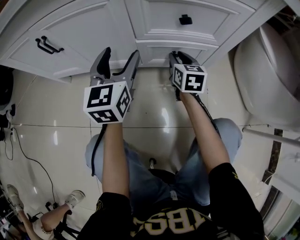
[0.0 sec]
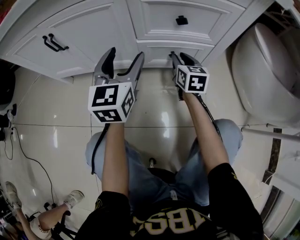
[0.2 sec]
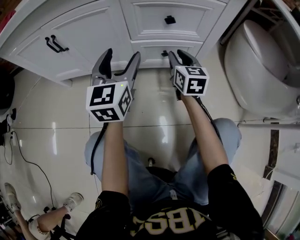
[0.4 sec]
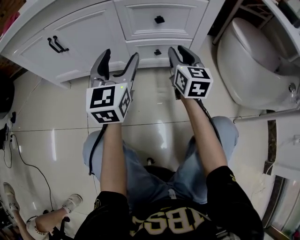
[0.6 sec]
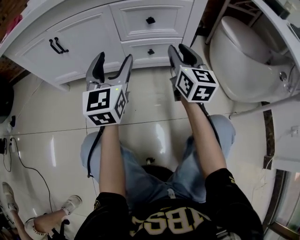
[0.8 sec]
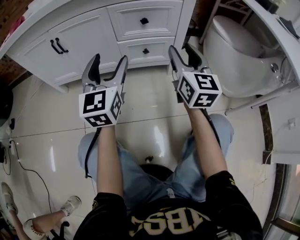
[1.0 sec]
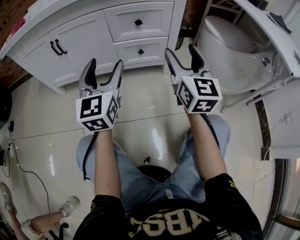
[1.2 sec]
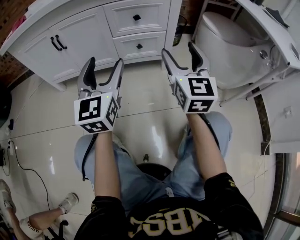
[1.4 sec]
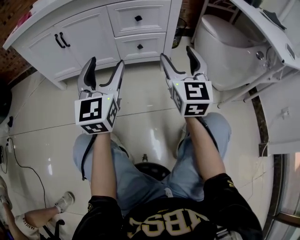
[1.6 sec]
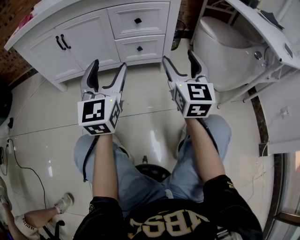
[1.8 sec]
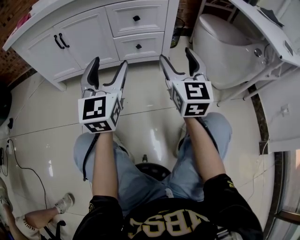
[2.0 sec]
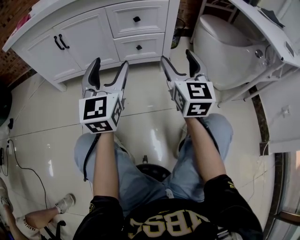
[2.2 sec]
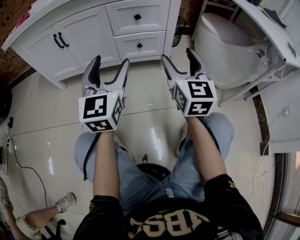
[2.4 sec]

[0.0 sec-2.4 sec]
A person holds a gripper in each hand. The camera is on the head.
0.0 sec to 1.2 sec: The left gripper moves backward and upward, some 25 cm; the right gripper travels upward and backward by about 40 cm, tilts its fingers approximately 30 degrees upward, and opens up.
1.2 sec to 2.4 sec: The grippers both shift backward by approximately 5 cm.

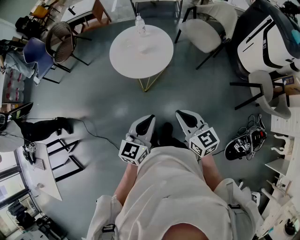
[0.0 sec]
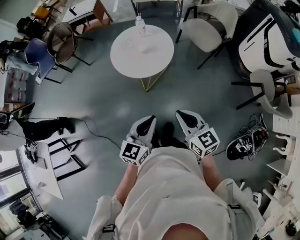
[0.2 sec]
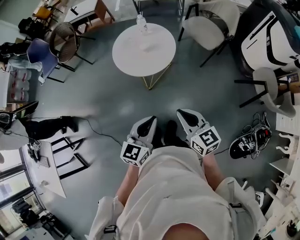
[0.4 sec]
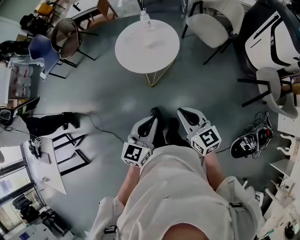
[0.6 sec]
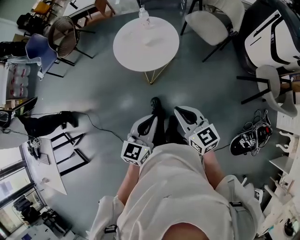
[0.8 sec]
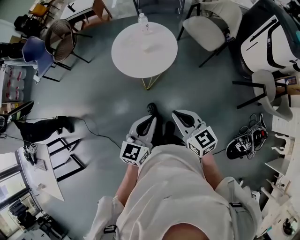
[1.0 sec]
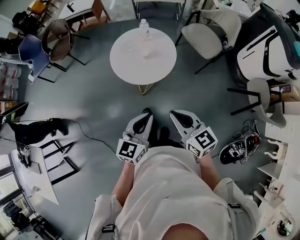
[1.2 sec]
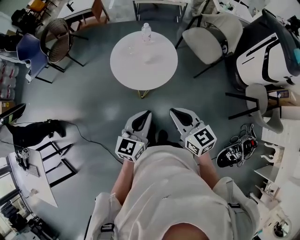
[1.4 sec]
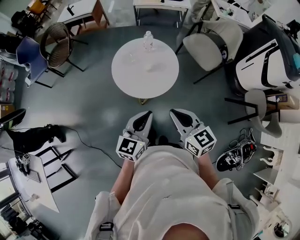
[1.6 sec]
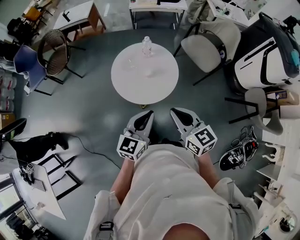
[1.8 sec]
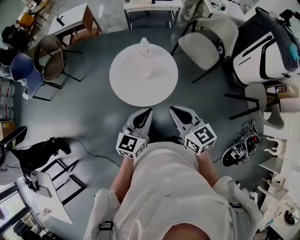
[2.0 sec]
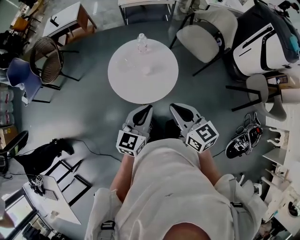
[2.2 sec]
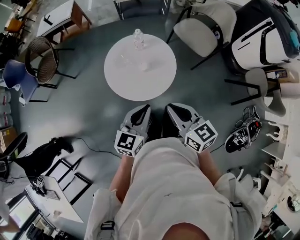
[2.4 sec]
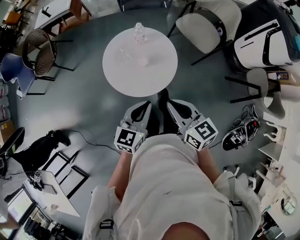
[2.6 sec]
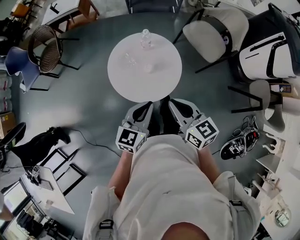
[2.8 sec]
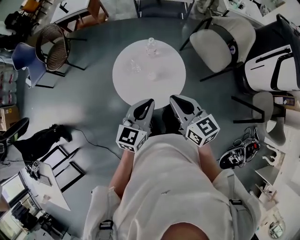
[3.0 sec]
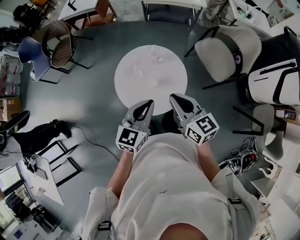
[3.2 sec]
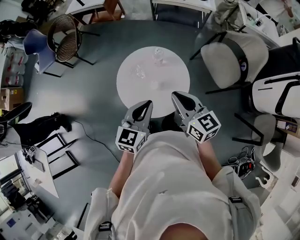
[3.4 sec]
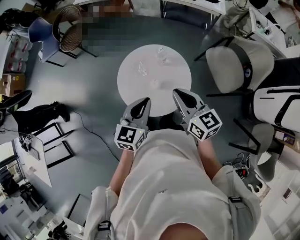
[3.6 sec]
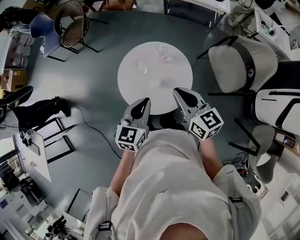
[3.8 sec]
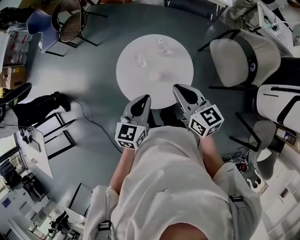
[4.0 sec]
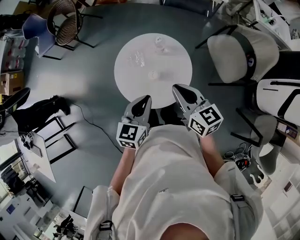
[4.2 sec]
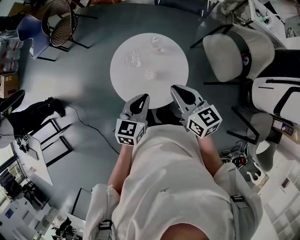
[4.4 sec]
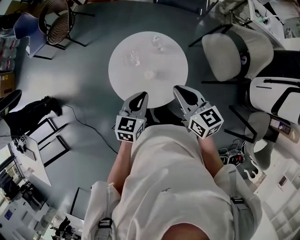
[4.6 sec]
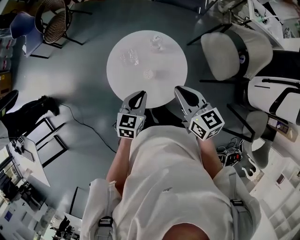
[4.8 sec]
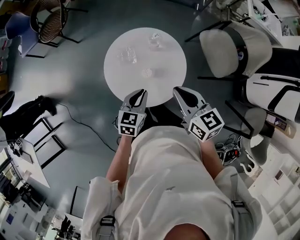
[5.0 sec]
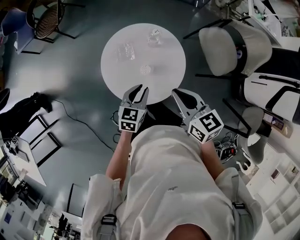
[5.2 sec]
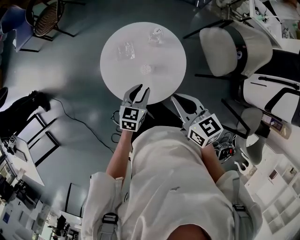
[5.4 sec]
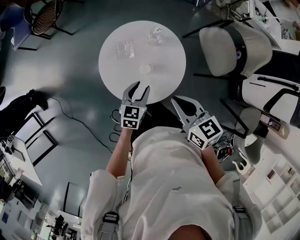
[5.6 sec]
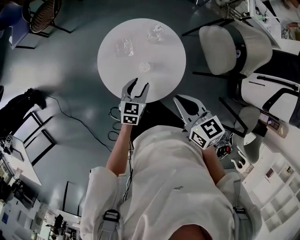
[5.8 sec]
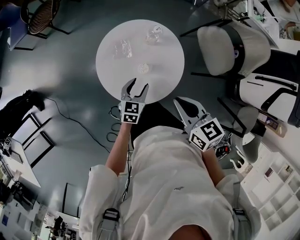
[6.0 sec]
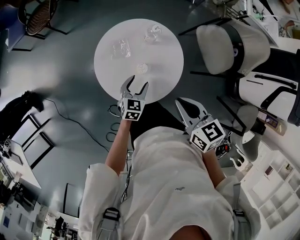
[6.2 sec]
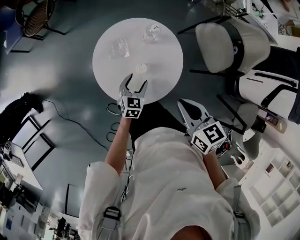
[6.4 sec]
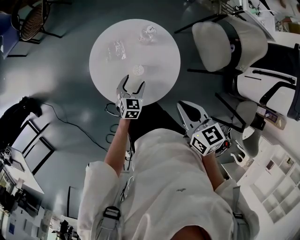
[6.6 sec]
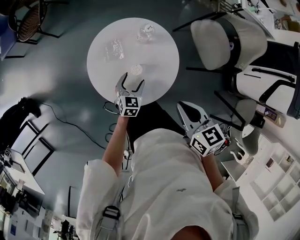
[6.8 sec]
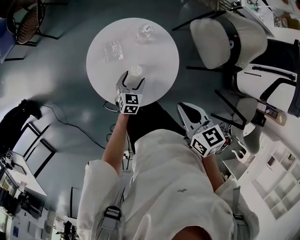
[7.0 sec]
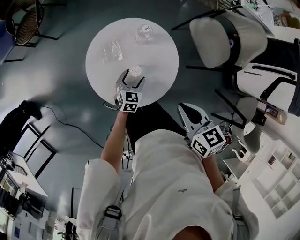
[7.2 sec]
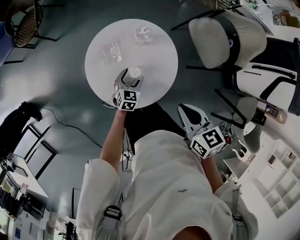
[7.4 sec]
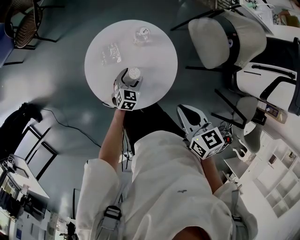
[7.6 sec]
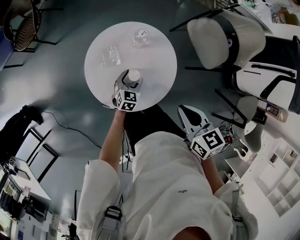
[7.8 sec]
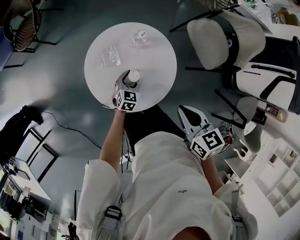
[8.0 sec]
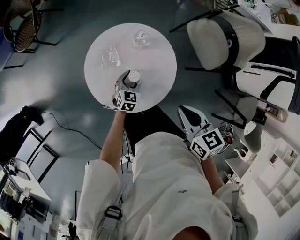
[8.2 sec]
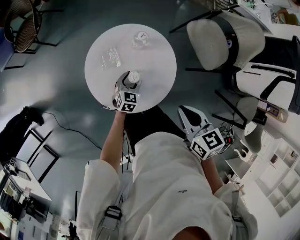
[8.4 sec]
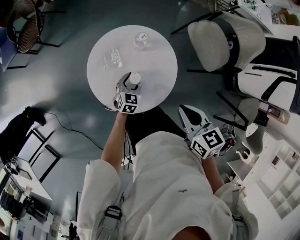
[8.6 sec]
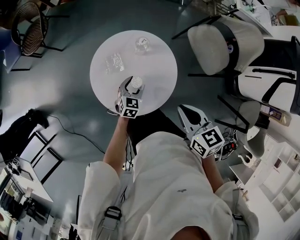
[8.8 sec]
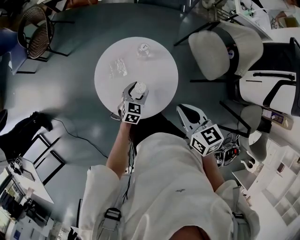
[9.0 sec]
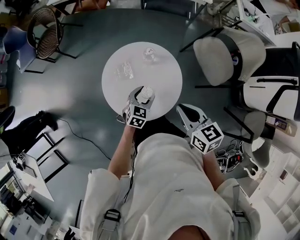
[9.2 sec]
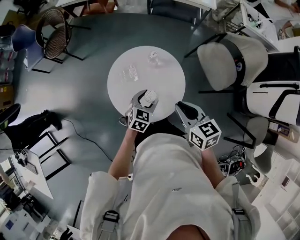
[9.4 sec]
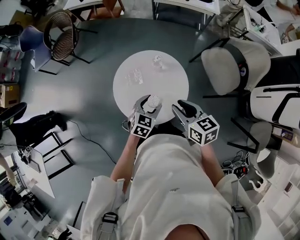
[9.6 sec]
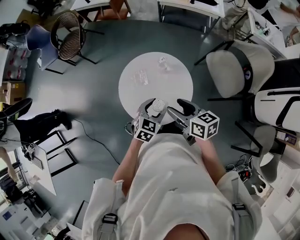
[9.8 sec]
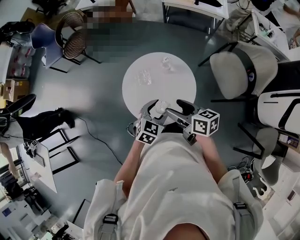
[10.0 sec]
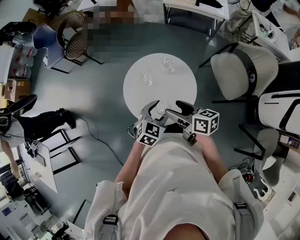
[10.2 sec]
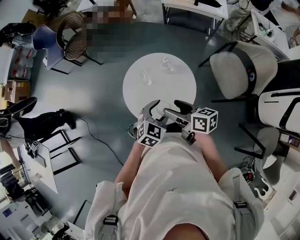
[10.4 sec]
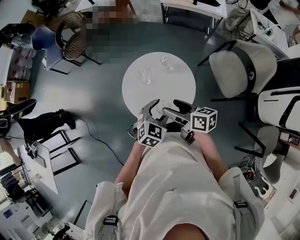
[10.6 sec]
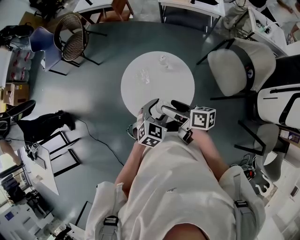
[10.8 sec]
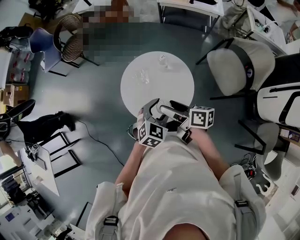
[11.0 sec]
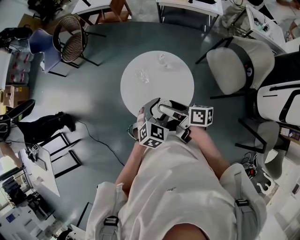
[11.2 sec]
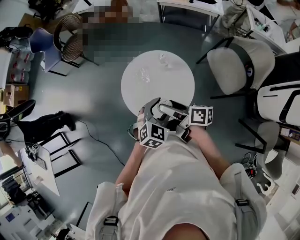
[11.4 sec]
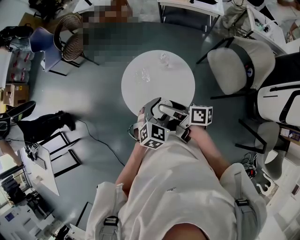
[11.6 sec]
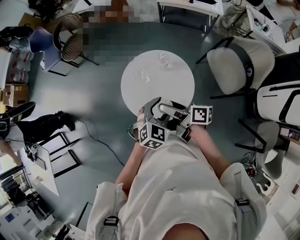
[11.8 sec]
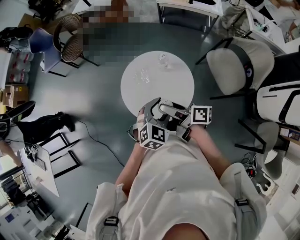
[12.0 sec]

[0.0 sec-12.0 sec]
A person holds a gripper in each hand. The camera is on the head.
0.0 sec to 1.6 sec: The left gripper is displaced forward by roughly 15 cm; the right gripper goes about 15 cm forward and to the left.
1.6 sec to 3.0 sec: The two grippers go some 20 cm forward.
3.0 sec to 4.4 sec: The right gripper shifts approximately 10 cm forward. Meanwhile the left gripper is displaced downward and forward by some 10 cm, and swivels some 20 degrees.
4.4 sec to 6.0 sec: The left gripper heads downward, covering roughly 20 cm, and opens its fingers. The right gripper travels downward by about 5 cm.
6.0 sec to 7.6 sec: The left gripper shifts some 10 cm downward and forward, and opens.
7.6 sec to 9.0 sec: The left gripper shifts some 10 cm upward.
9.0 sec to 10.4 sec: The left gripper shifts about 20 cm upward and backward, while the right gripper shifts about 10 cm to the left, swivels approximately 40 degrees, and opens its fingers.
10.4 sec to 12.0 sec: The right gripper rotates some 20 degrees.

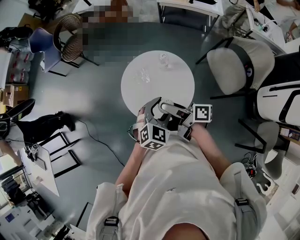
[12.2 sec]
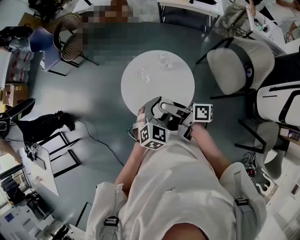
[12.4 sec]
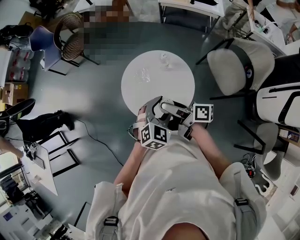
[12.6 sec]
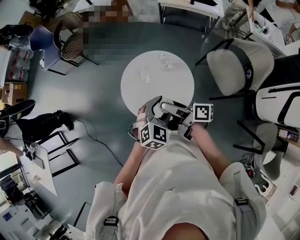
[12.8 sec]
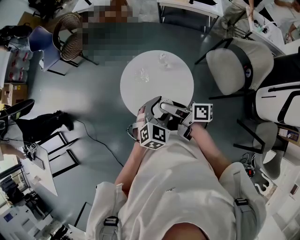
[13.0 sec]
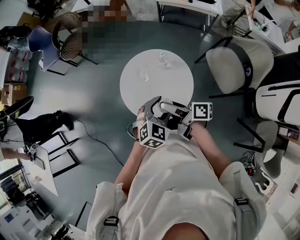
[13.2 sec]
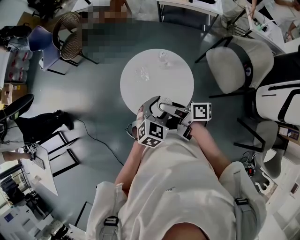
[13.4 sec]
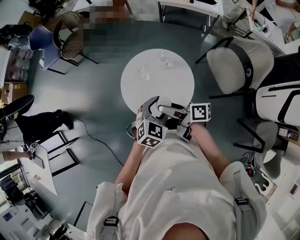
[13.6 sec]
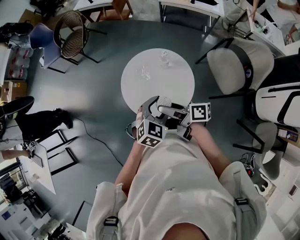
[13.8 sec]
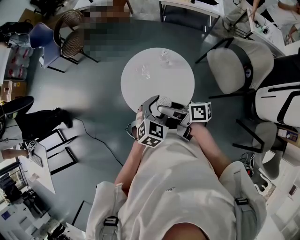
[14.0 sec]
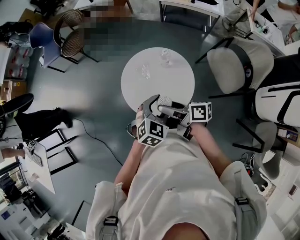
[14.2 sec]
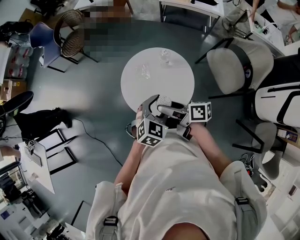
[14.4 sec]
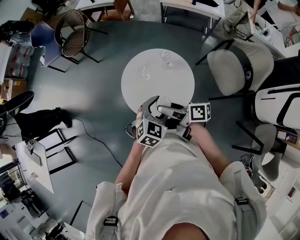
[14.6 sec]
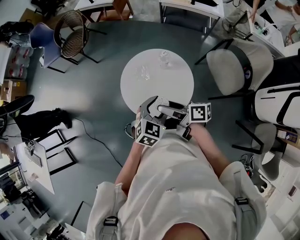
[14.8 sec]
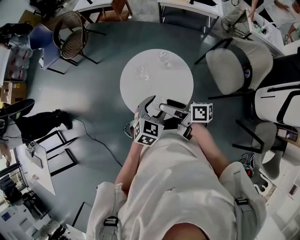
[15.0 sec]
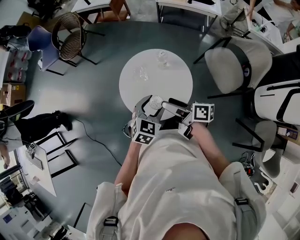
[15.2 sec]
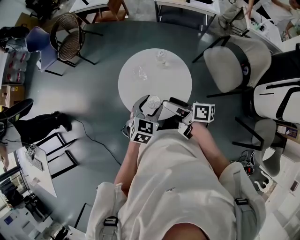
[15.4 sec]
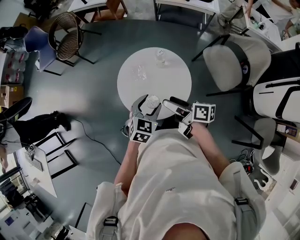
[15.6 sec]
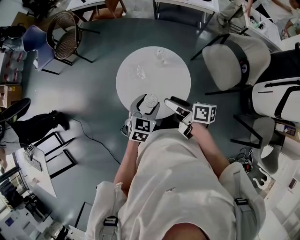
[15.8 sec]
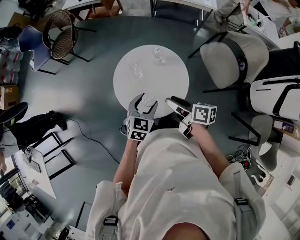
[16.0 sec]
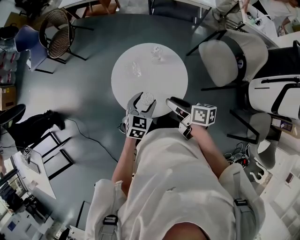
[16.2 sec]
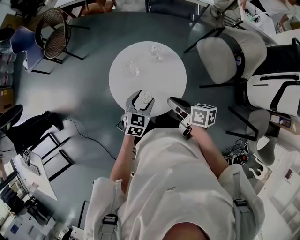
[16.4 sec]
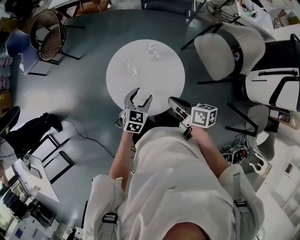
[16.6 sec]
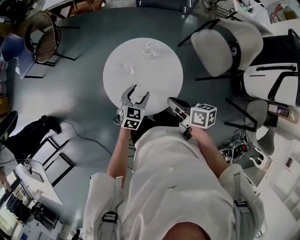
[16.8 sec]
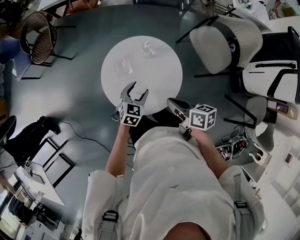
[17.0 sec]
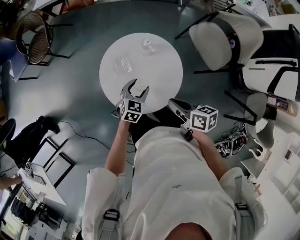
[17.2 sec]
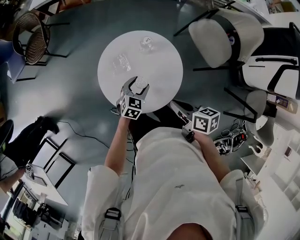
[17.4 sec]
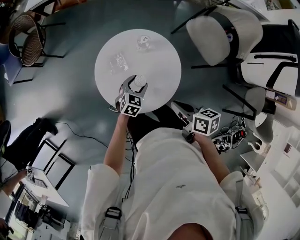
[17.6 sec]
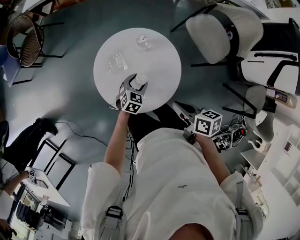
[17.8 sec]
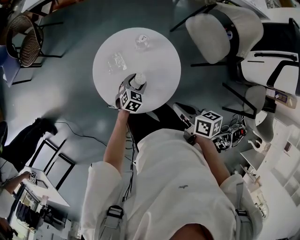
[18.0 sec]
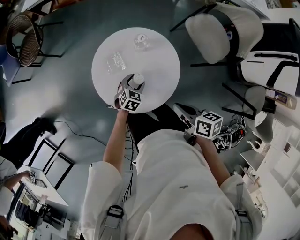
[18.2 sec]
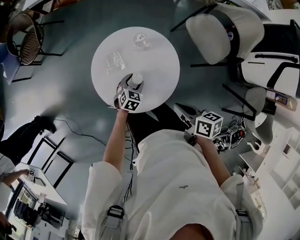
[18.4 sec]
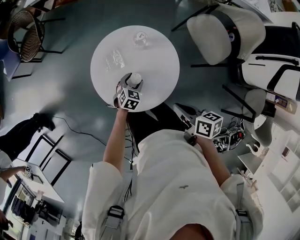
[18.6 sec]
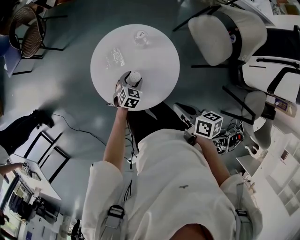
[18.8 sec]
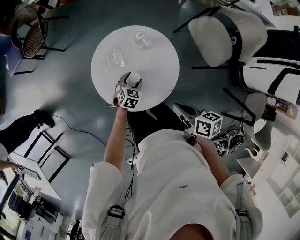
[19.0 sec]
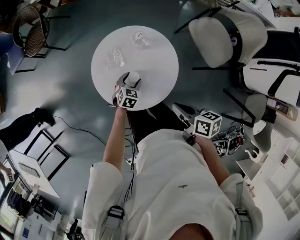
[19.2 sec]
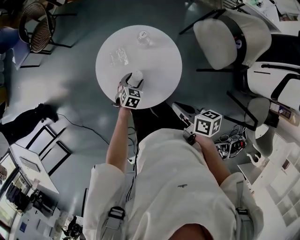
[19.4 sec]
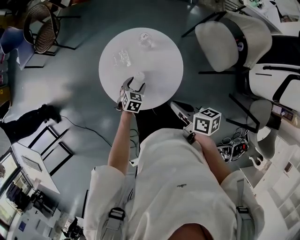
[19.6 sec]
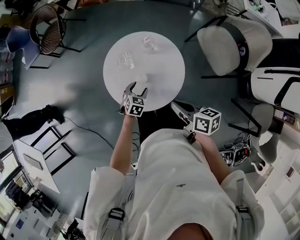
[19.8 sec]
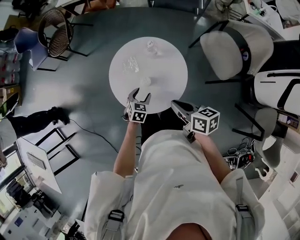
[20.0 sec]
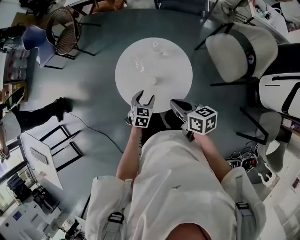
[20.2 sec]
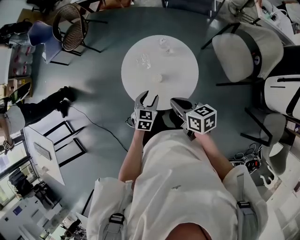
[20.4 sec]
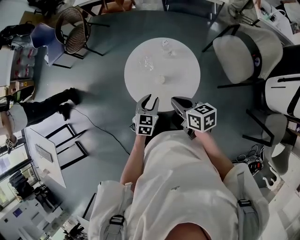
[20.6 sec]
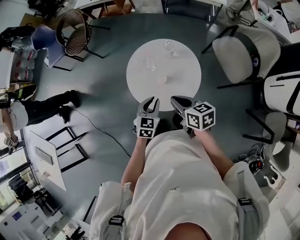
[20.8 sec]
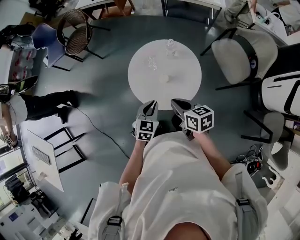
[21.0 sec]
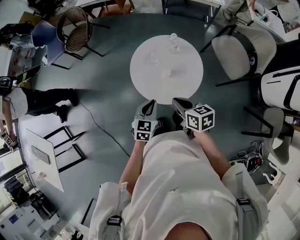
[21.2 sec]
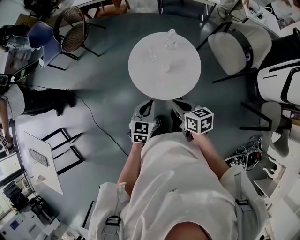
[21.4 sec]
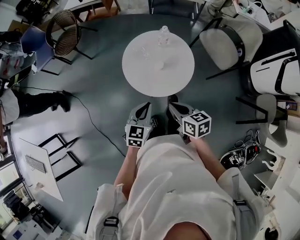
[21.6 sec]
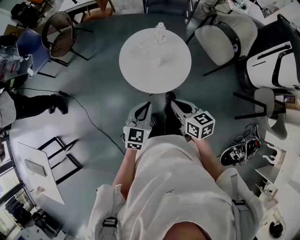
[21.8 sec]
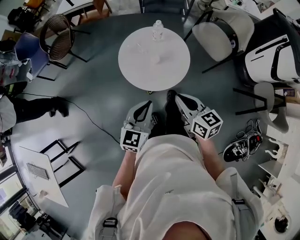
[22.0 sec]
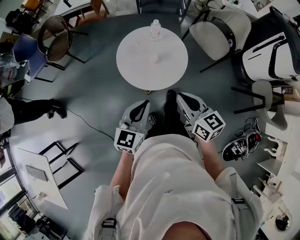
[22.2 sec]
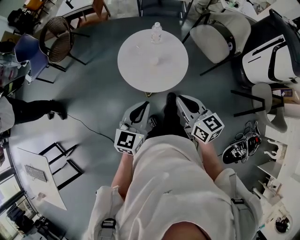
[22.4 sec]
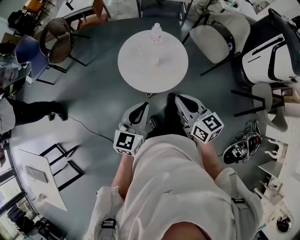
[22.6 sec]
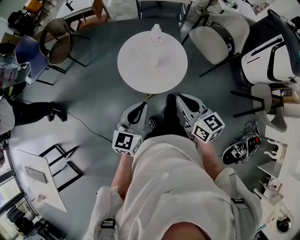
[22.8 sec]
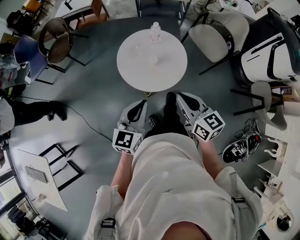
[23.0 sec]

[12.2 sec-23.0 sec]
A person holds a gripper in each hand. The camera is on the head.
12.2 sec to 15.2 sec: The grippers move only a little.
15.2 sec to 16.8 sec: The right gripper moves about 5 cm, rotates roughly 20 degrees, and closes its fingers; the left gripper heads downward and forward, covering about 15 cm.
16.8 sec to 18.4 sec: The left gripper shifts roughly 15 cm downward; the right gripper shifts by roughly 5 cm.
18.4 sec to 20.0 sec: The left gripper heads upward and backward, covering about 10 cm.
20.0 sec to 21.4 sec: The right gripper travels to the left and backward by about 15 cm. The left gripper travels upward, backward and to the left by some 25 cm, changes its angle by approximately 20 degrees, and closes its fingers.
21.4 sec to 23.0 sec: Both grippers move upward and backward, about 15 cm. The right gripper rotates some 30 degrees. The left gripper changes its angle by about 20 degrees.
